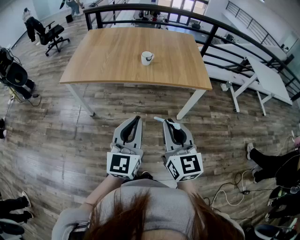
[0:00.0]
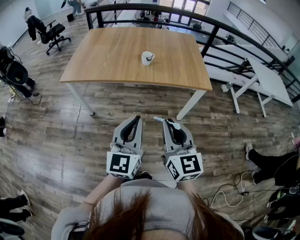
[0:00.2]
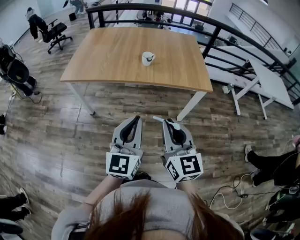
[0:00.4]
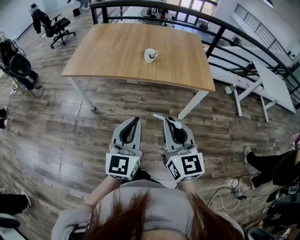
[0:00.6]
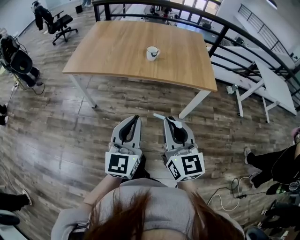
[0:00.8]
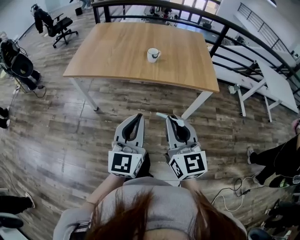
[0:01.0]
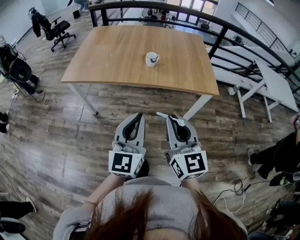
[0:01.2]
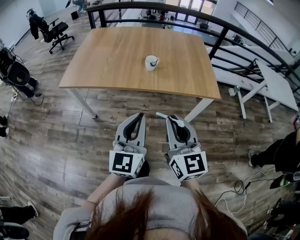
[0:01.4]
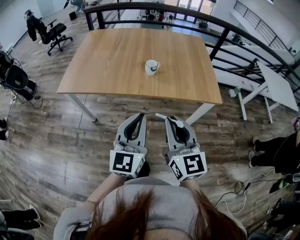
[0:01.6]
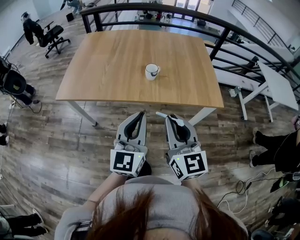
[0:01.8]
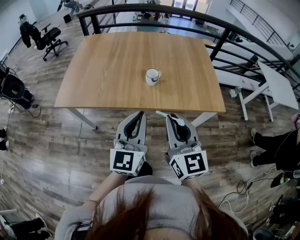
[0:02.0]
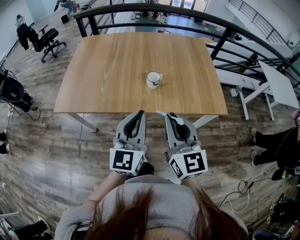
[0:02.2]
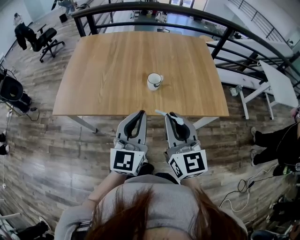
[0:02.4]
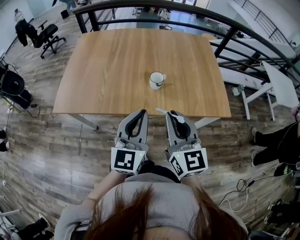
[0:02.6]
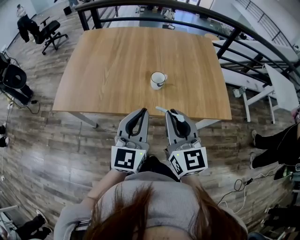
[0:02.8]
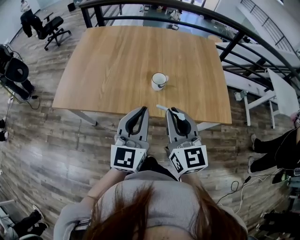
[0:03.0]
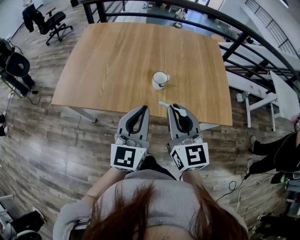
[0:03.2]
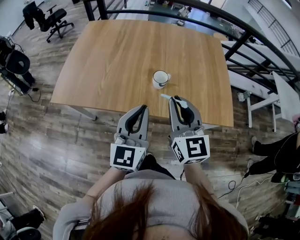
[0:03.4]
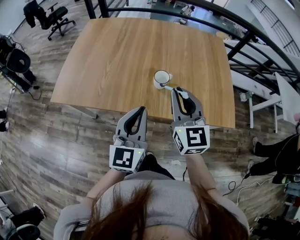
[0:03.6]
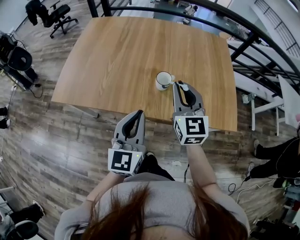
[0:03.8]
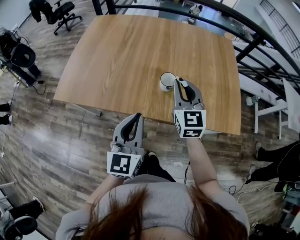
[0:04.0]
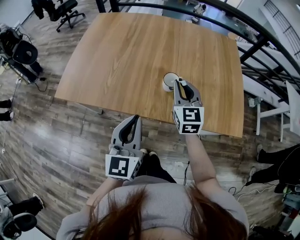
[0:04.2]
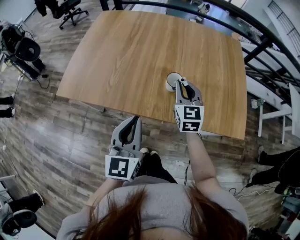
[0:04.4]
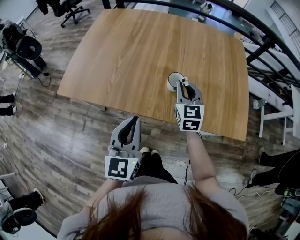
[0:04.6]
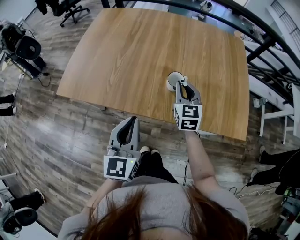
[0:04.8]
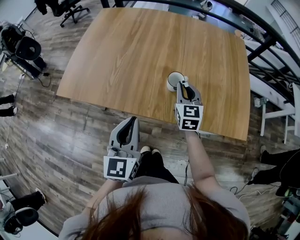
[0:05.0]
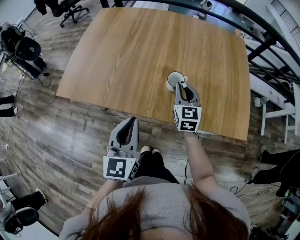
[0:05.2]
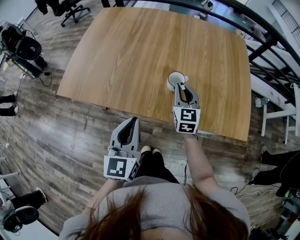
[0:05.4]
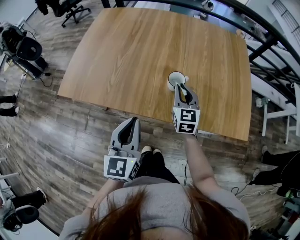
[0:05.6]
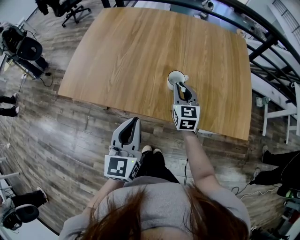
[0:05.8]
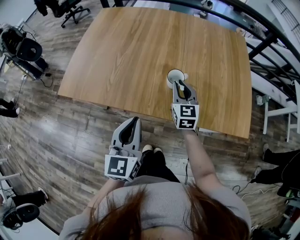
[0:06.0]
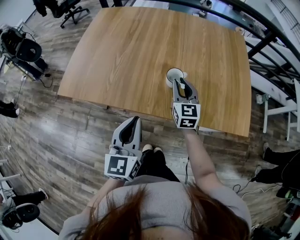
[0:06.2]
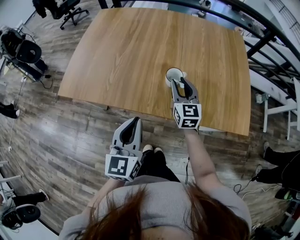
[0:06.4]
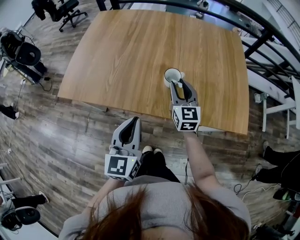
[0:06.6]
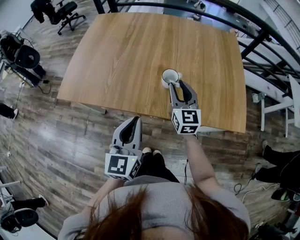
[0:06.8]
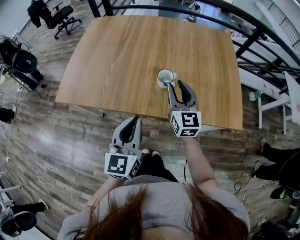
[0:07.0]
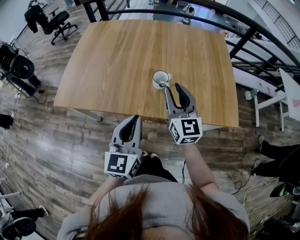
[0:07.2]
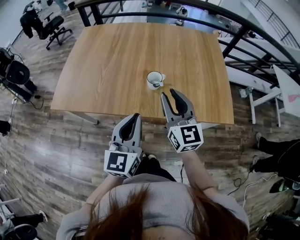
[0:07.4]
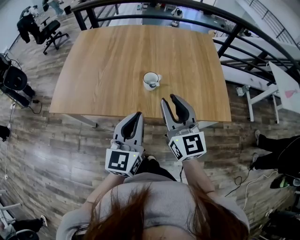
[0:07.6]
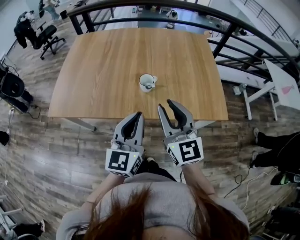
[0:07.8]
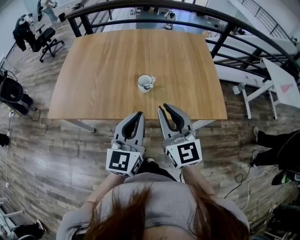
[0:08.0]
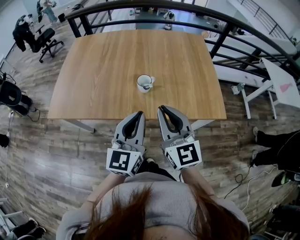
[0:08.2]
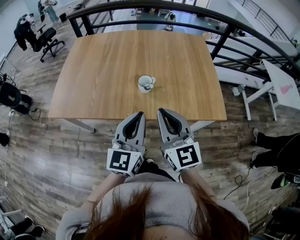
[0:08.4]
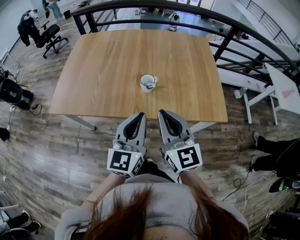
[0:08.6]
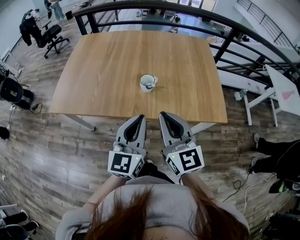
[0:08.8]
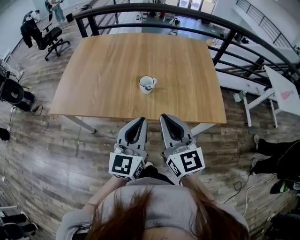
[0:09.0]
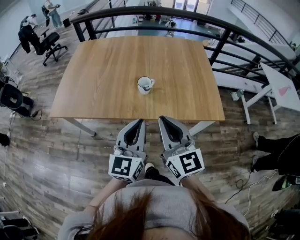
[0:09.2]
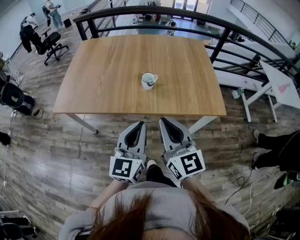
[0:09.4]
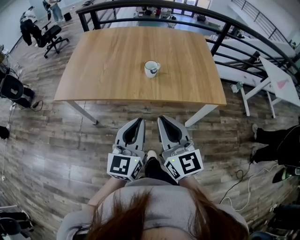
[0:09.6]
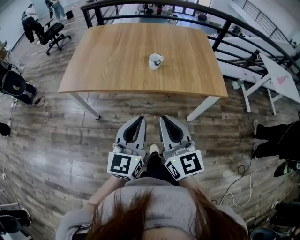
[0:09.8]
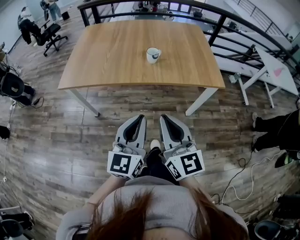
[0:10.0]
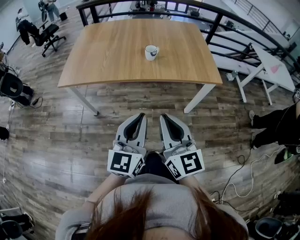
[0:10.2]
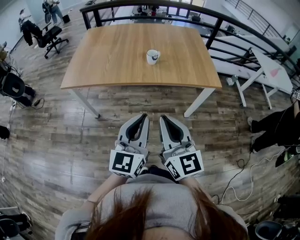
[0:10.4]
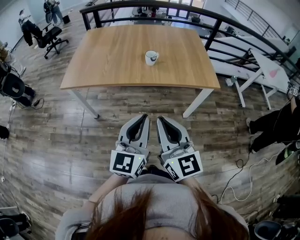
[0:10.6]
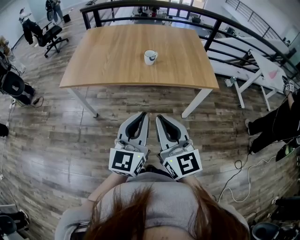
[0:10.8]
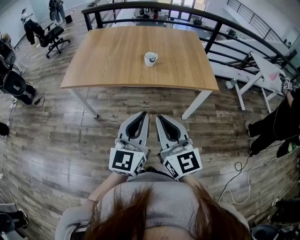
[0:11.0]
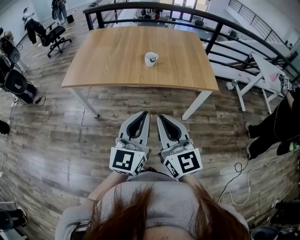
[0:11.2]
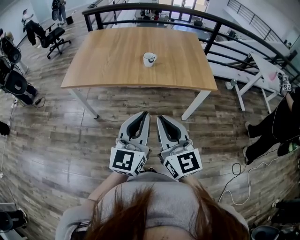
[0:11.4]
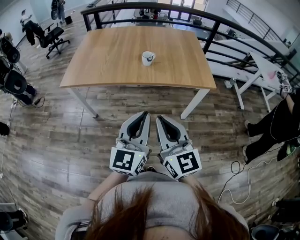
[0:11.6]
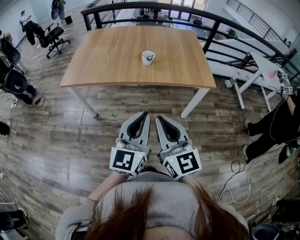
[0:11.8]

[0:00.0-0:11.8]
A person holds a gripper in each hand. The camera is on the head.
0:00.0 to 0:01.4: The two grippers go about 10 cm forward.
0:01.4 to 0:03.0: The grippers both shift forward by some 25 cm.
0:03.0 to 0:04.4: The right gripper is displaced forward and downward by about 25 cm. Meanwhile the left gripper heads downward, covering some 5 cm.
0:04.4 to 0:06.0: The right gripper goes roughly 5 cm downward.
0:06.0 to 0:07.4: The right gripper heads upward and backward, covering about 20 cm; the left gripper heads to the right, covering some 5 cm.
0:07.4 to 0:08.8: The right gripper travels backward by about 10 cm, and closes. The left gripper moves about 5 cm.
0:08.8 to 0:10.4: The grippers both shift backward by roughly 25 cm.
0:10.4 to 0:11.8: The left gripper is displaced to the right by approximately 5 cm.

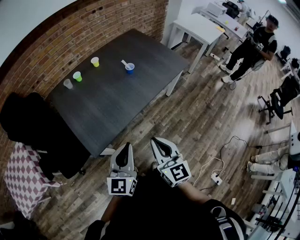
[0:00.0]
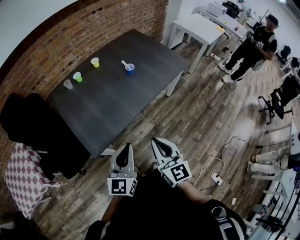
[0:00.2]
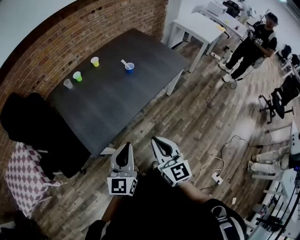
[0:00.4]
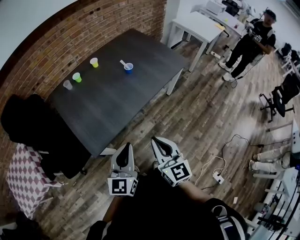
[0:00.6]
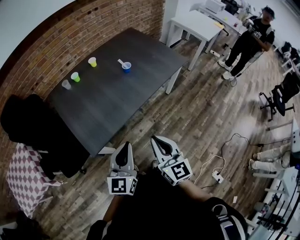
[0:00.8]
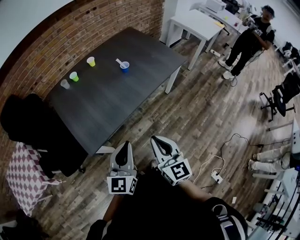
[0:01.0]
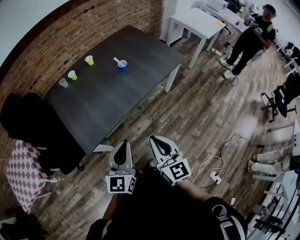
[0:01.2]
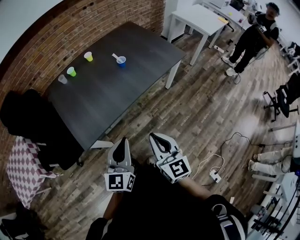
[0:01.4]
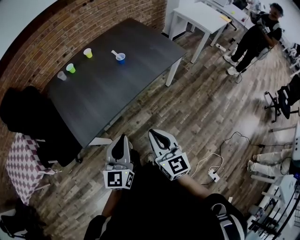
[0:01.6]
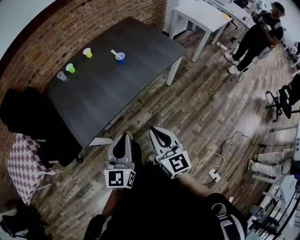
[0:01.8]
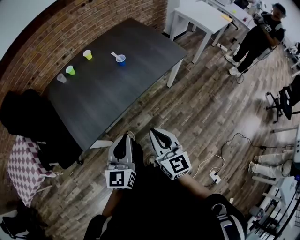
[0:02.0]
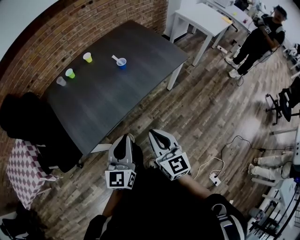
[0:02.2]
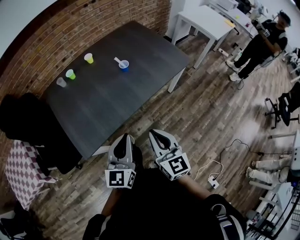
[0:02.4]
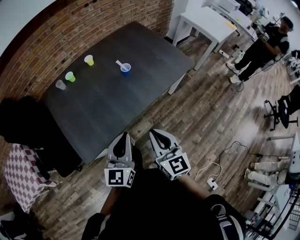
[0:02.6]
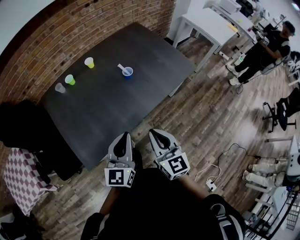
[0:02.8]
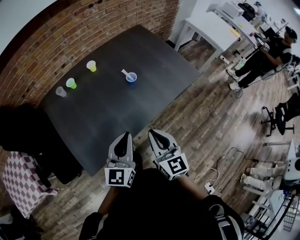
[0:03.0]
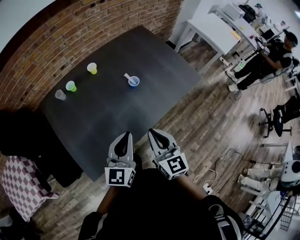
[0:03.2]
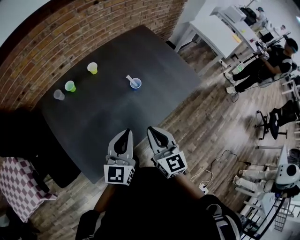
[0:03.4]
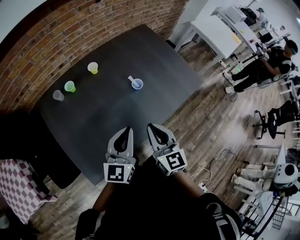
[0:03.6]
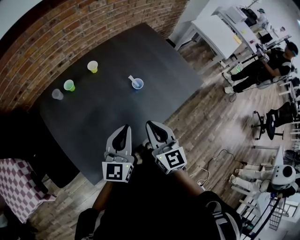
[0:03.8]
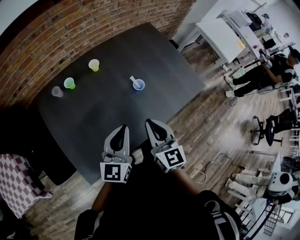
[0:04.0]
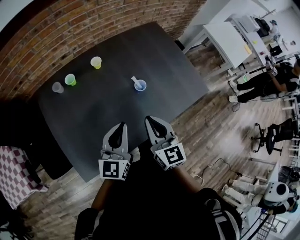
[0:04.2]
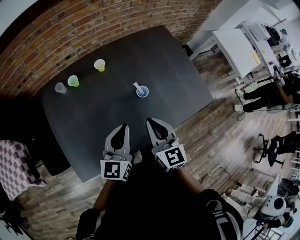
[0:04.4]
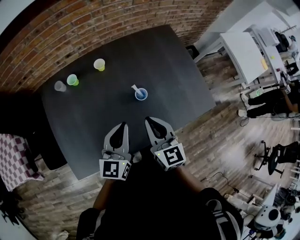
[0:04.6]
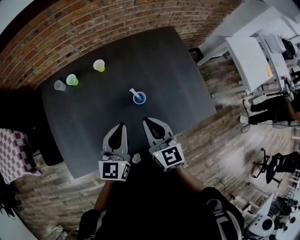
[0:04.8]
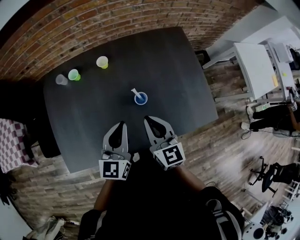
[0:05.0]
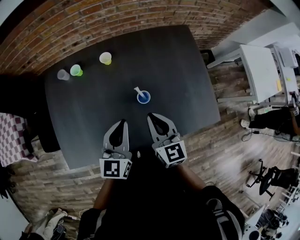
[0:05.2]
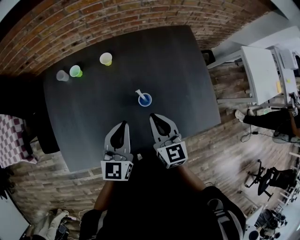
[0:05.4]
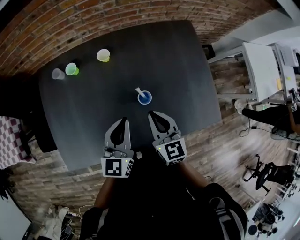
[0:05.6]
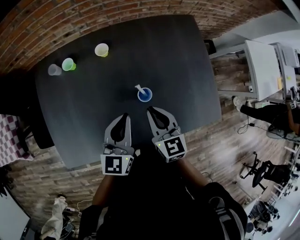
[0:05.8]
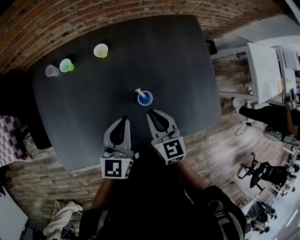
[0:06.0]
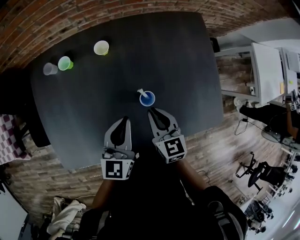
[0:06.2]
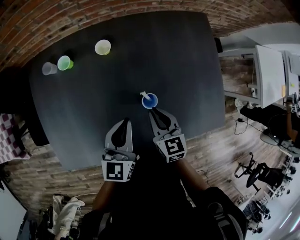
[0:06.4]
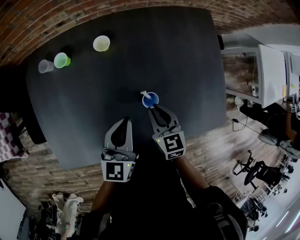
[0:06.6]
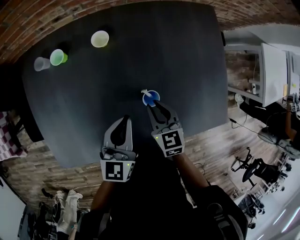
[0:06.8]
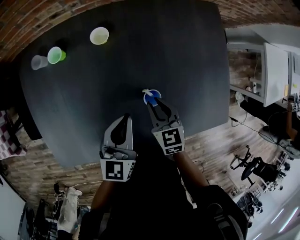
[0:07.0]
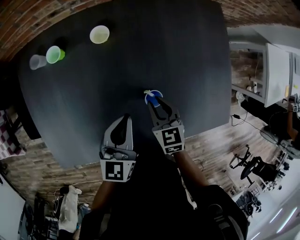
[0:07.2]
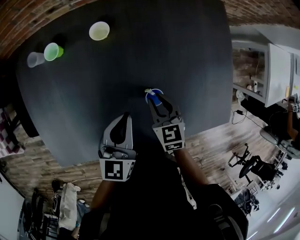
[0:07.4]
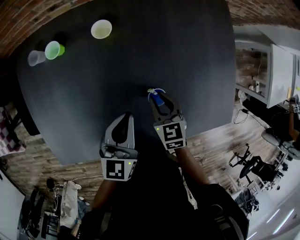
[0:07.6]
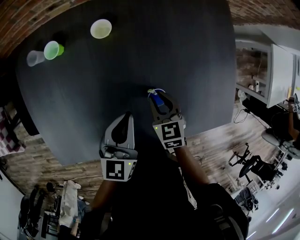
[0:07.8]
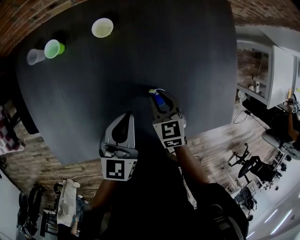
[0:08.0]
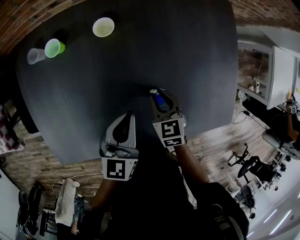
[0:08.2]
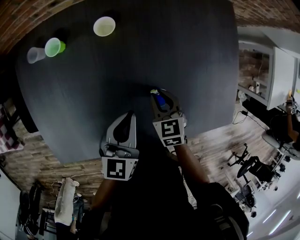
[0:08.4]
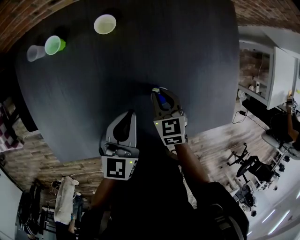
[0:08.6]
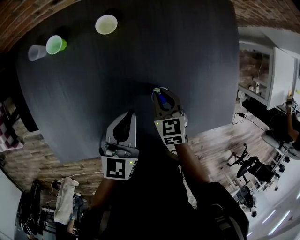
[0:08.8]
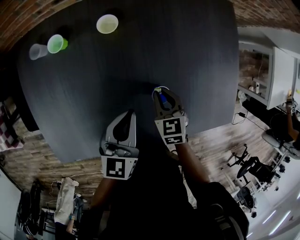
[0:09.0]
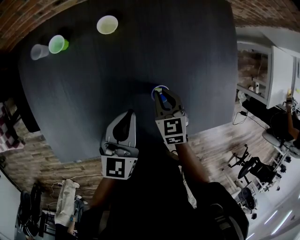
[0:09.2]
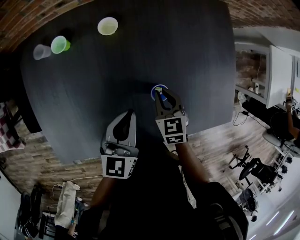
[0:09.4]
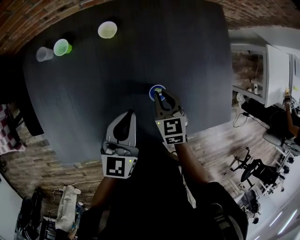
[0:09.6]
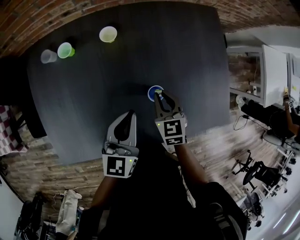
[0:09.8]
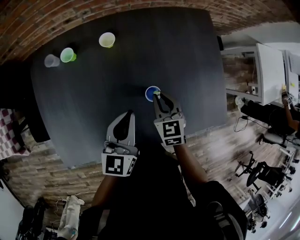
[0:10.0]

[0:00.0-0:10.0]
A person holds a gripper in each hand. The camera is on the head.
0:00.0 to 0:01.4: The two grippers go approximately 10 cm to the right.
0:01.4 to 0:02.8: The grippers both shift forward by some 20 cm.
0:02.8 to 0:04.2: Both grippers travel together forward, roughly 20 cm.
0:04.2 to 0:05.8: The right gripper goes approximately 20 cm forward, downward and to the right, and changes its angle by roughly 20 degrees, while the left gripper travels forward, to the right and downward by approximately 15 cm.
0:05.8 to 0:07.2: The left gripper goes about 10 cm downward. The right gripper travels downward by some 15 cm.
0:07.2 to 0:08.6: The grippers make only small movements.
0:08.6 to 0:10.0: Both grippers travel together upward, about 10 cm.

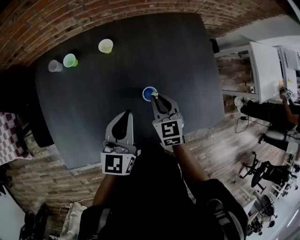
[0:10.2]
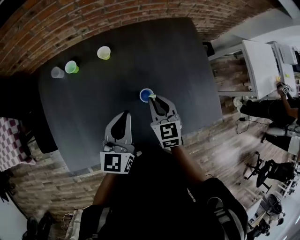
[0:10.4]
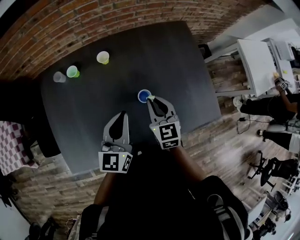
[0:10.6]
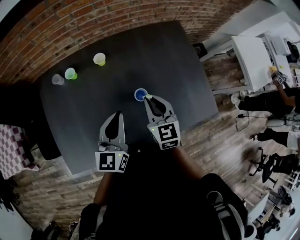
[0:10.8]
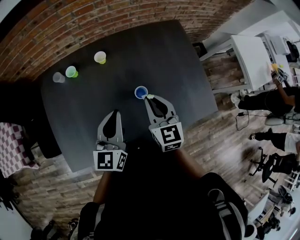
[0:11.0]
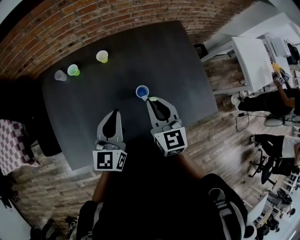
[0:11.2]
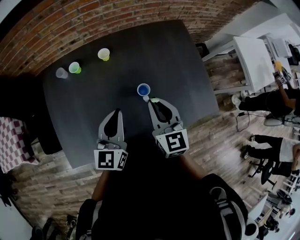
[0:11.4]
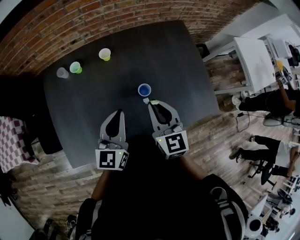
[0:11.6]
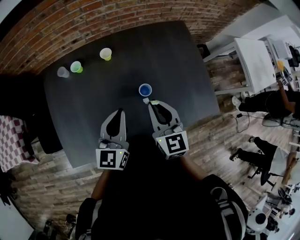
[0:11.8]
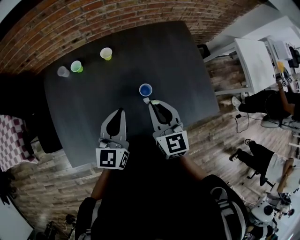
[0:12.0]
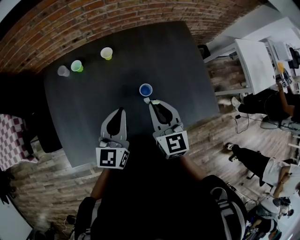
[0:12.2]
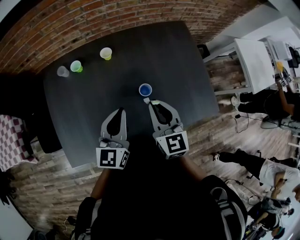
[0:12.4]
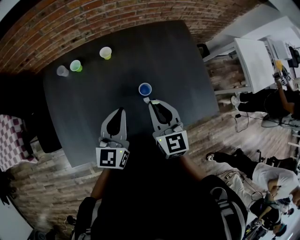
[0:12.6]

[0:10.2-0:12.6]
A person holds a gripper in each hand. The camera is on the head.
0:10.2 to 0:11.4: The left gripper travels upward and backward by roughly 10 cm; the right gripper heads upward and backward, covering about 15 cm.
0:11.4 to 0:12.6: Neither gripper changes place.
